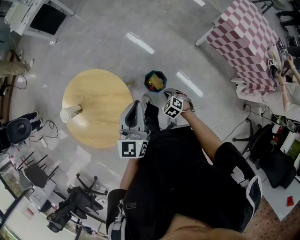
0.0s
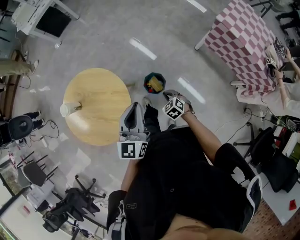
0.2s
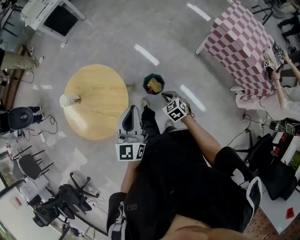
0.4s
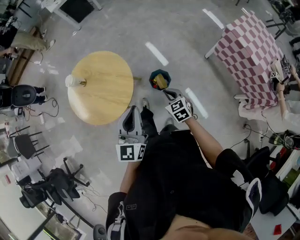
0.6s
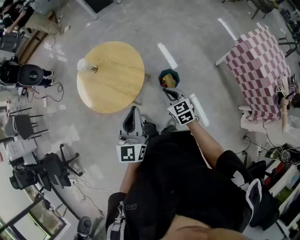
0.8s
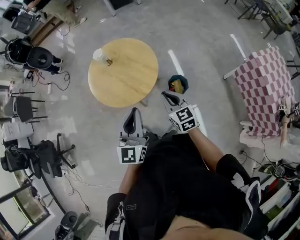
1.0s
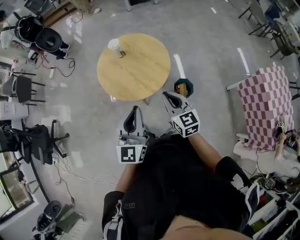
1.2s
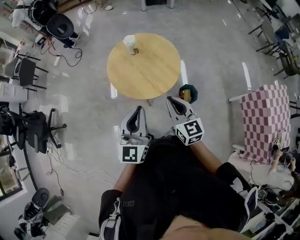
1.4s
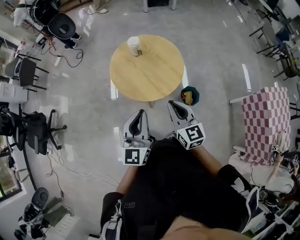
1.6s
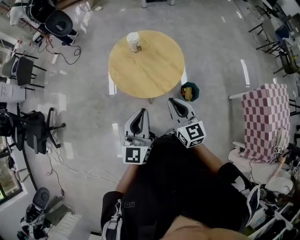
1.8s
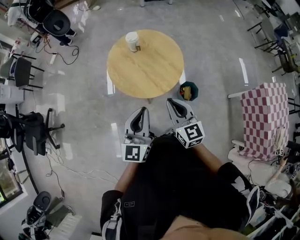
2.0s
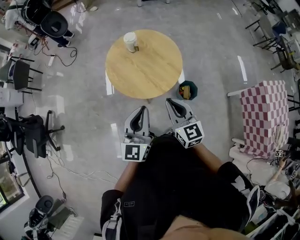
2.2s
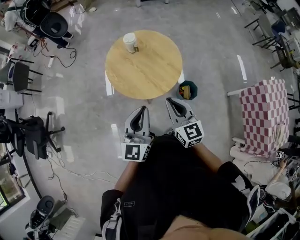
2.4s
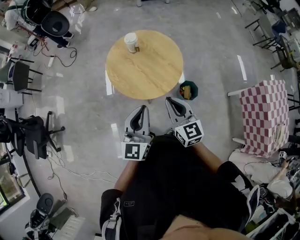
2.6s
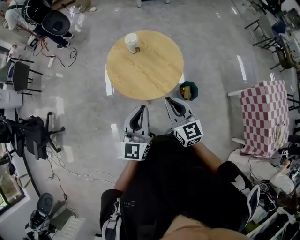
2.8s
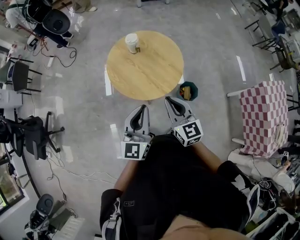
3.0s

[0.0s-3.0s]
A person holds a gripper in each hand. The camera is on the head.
0.0s to 1.6s: The left gripper ends up about 40 cm from where it was, and rotates roughly 40 degrees; the right gripper goes approximately 35 cm upward, and tips its fingers upward by about 50 degrees.
1.6s to 3.0s: The grippers move only a little.

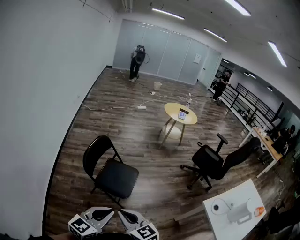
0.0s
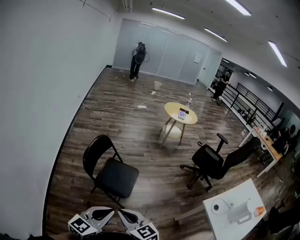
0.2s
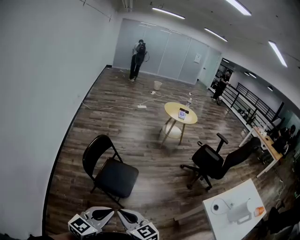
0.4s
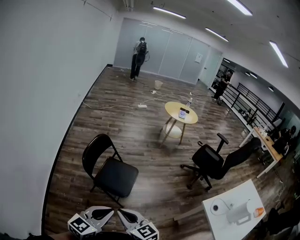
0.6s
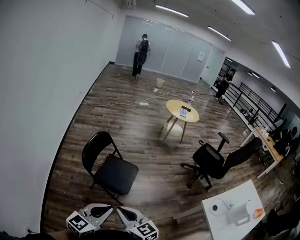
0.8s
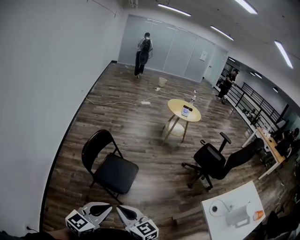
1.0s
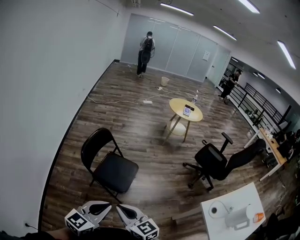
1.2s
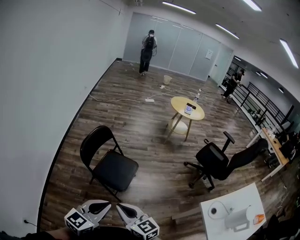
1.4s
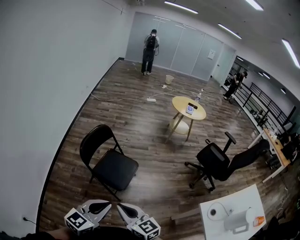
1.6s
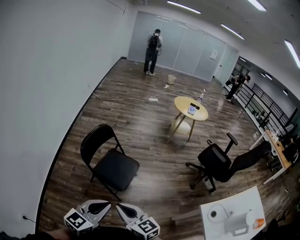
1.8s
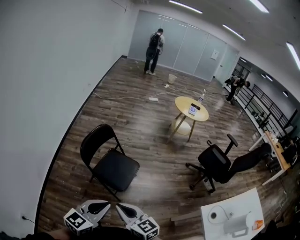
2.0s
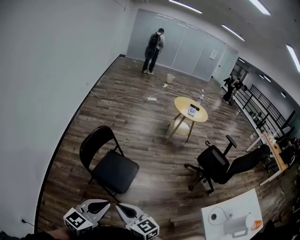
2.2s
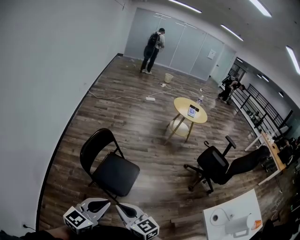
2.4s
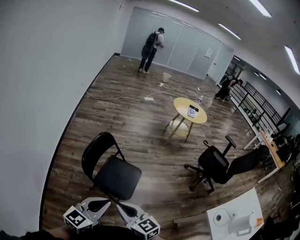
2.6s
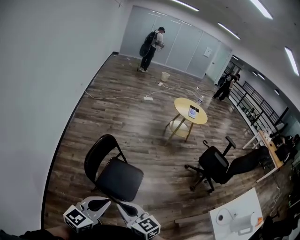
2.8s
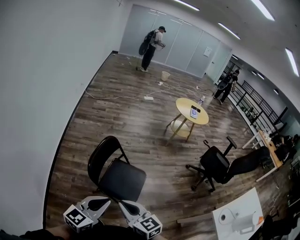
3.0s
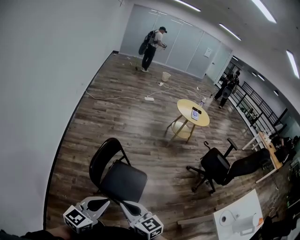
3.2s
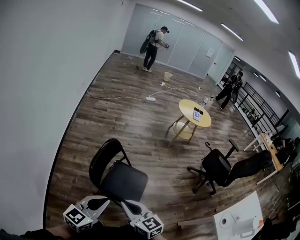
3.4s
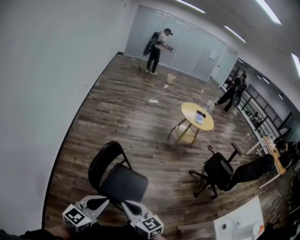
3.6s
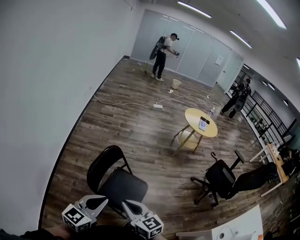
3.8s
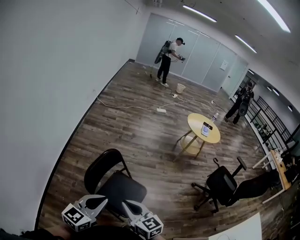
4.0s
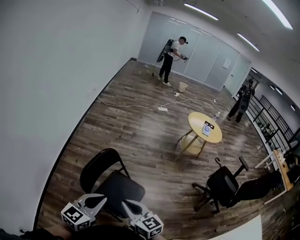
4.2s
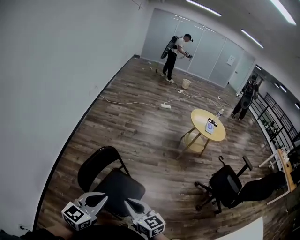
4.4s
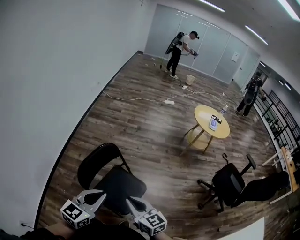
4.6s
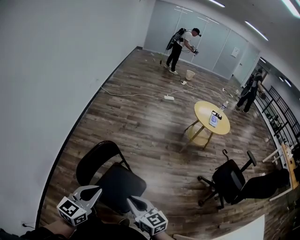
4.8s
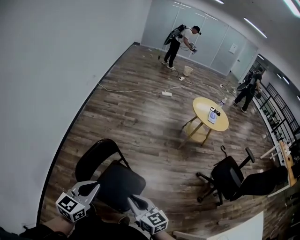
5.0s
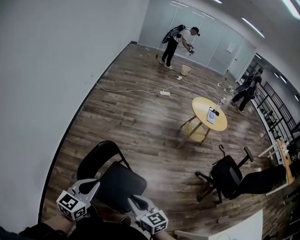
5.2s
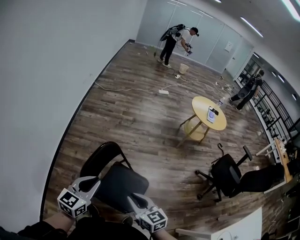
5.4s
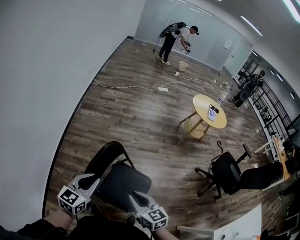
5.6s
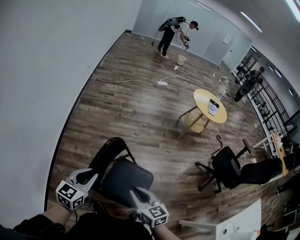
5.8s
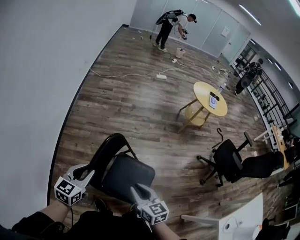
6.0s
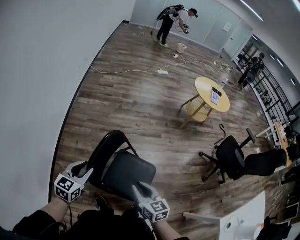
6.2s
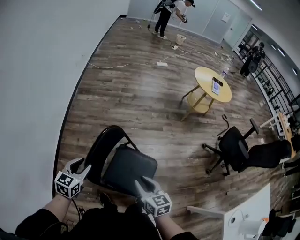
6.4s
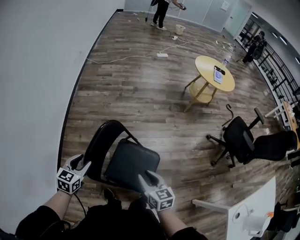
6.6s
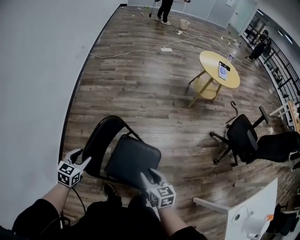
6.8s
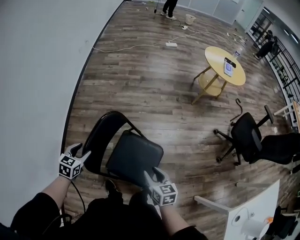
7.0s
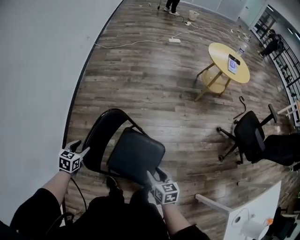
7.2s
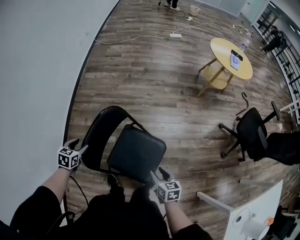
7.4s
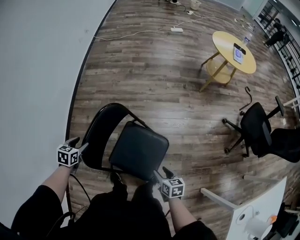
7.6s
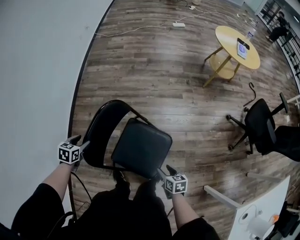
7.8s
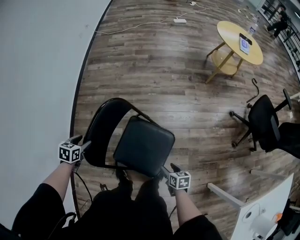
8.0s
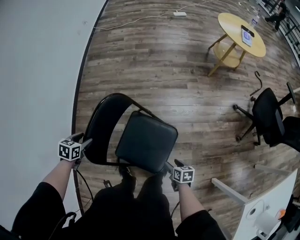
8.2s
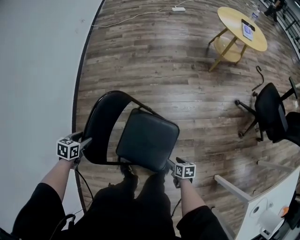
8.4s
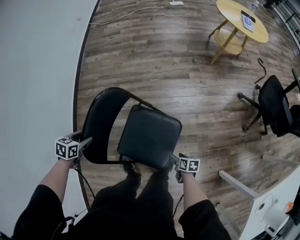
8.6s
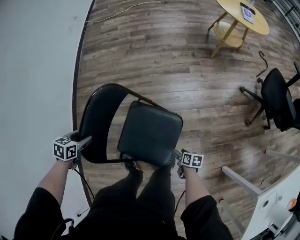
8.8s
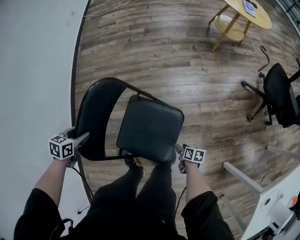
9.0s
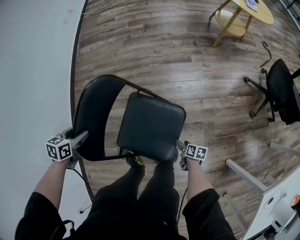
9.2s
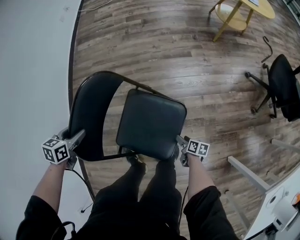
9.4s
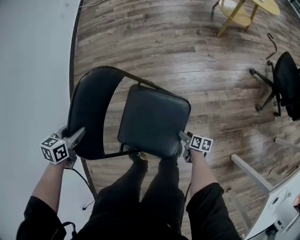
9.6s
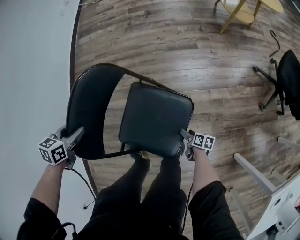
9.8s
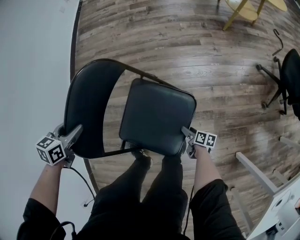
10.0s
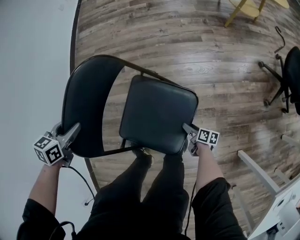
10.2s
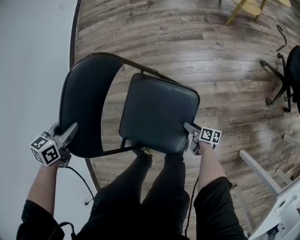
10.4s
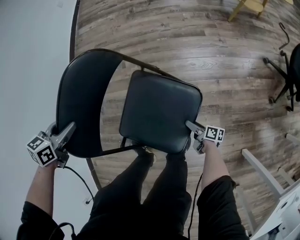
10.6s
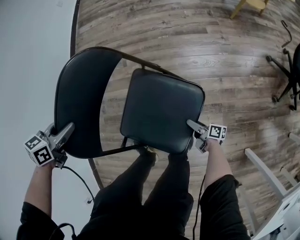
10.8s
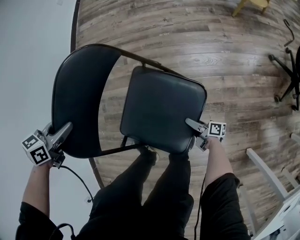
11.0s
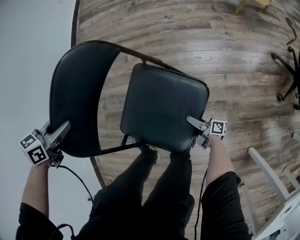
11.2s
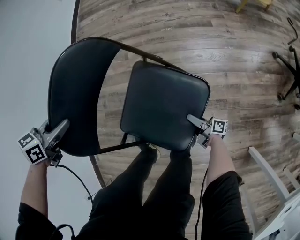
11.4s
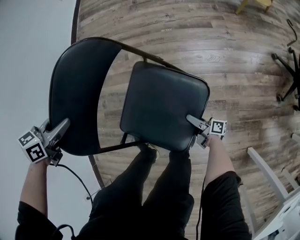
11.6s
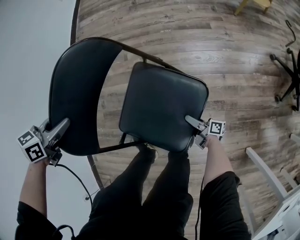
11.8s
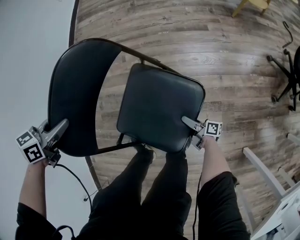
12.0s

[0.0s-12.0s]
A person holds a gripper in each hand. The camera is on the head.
0.0s to 1.6s: The grippers both shift to the right by about 5 cm.
1.6s to 3.0s: Both grippers move forward and to the left, roughly 20 cm.
3.0s to 4.4s: The grippers both shift forward and to the right by approximately 15 cm.
4.4s to 6.0s: The right gripper moves forward, to the left and downward, about 10 cm; the left gripper heads to the left, forward and downward, covering roughly 25 cm.
6.0s to 7.6s: The left gripper heads downward, covering about 20 cm, tilts its fingers roughly 30 degrees downward, and opens up, while the right gripper moves downward and to the right, about 30 cm, and turns by about 30 degrees.
7.6s to 9.0s: The right gripper shifts roughly 25 cm downward, and turns by some 30 degrees.
9.0s to 10.4s: The right gripper heads downward, covering approximately 10 cm.
10.4s to 12.0s: The right gripper shifts by approximately 5 cm, and turns by some 30 degrees.

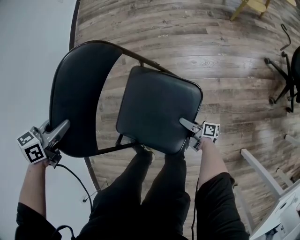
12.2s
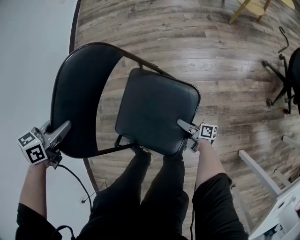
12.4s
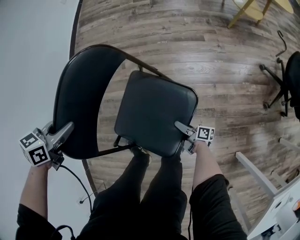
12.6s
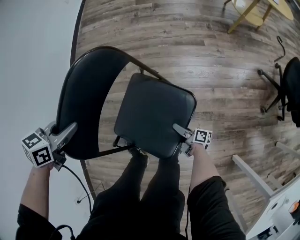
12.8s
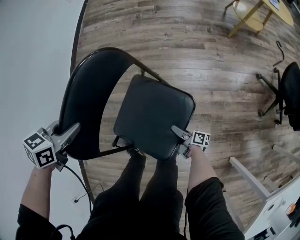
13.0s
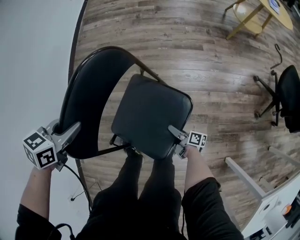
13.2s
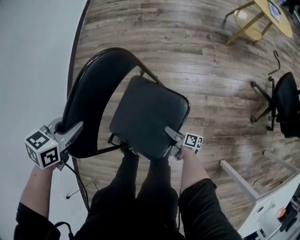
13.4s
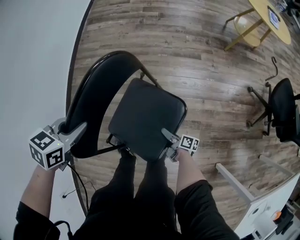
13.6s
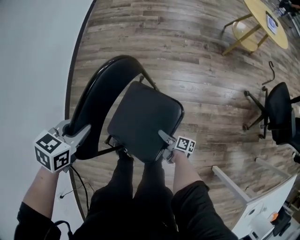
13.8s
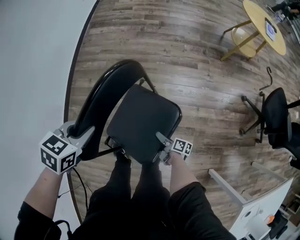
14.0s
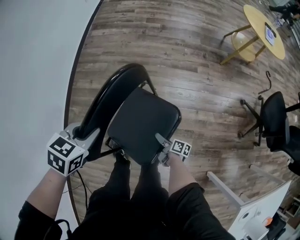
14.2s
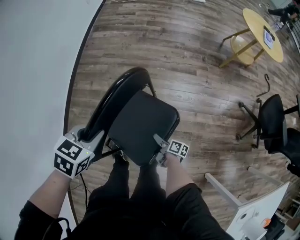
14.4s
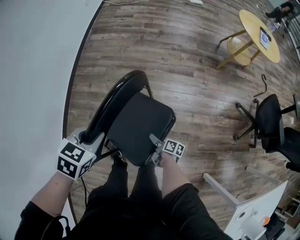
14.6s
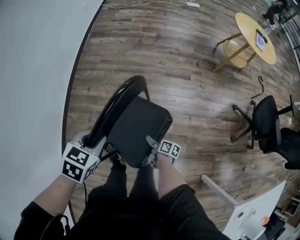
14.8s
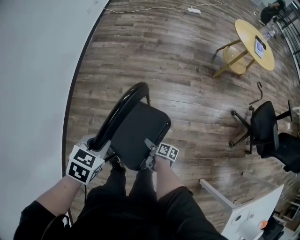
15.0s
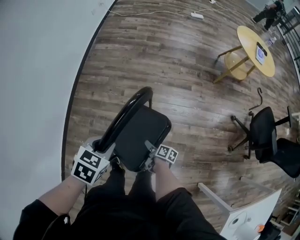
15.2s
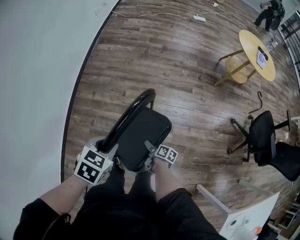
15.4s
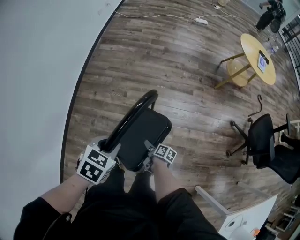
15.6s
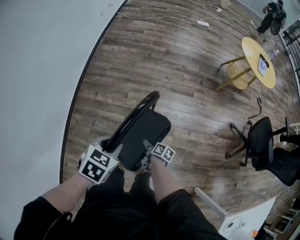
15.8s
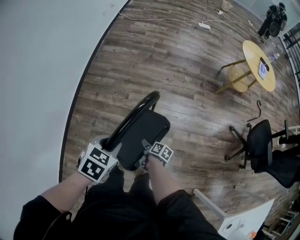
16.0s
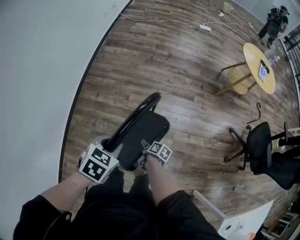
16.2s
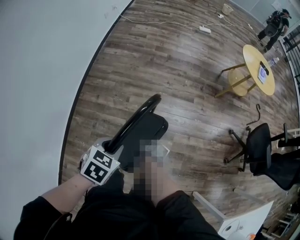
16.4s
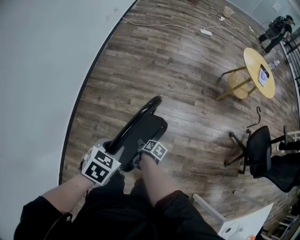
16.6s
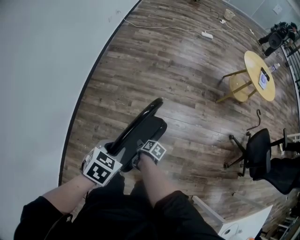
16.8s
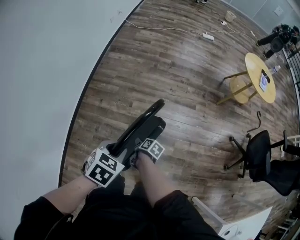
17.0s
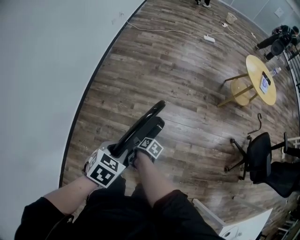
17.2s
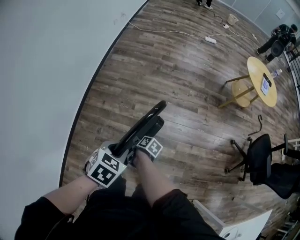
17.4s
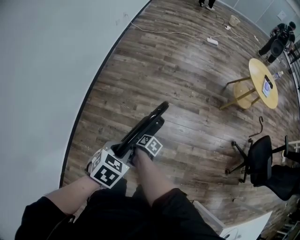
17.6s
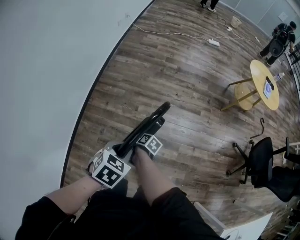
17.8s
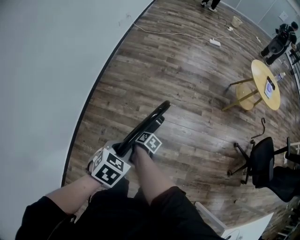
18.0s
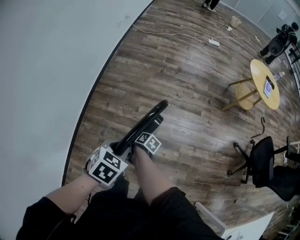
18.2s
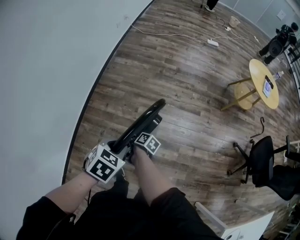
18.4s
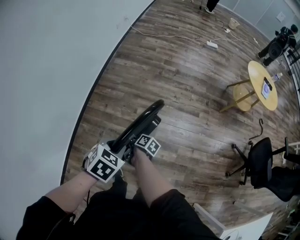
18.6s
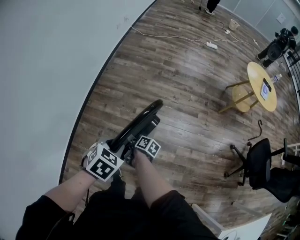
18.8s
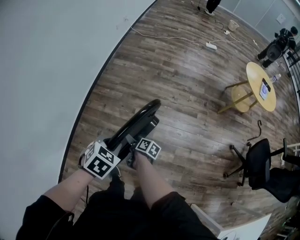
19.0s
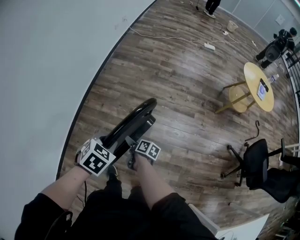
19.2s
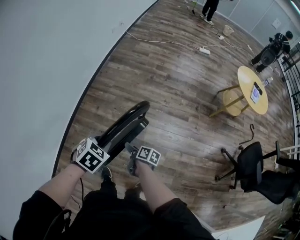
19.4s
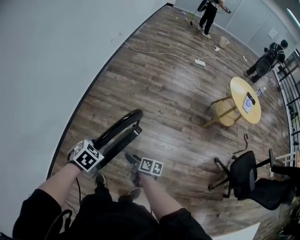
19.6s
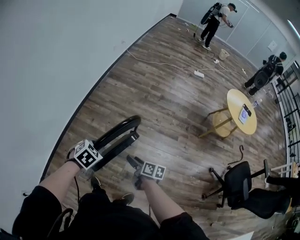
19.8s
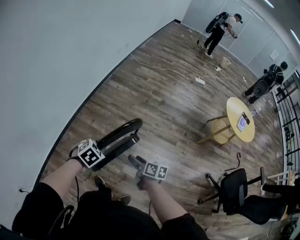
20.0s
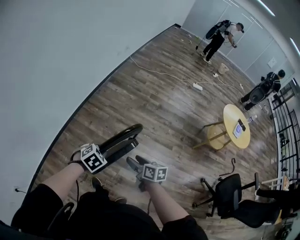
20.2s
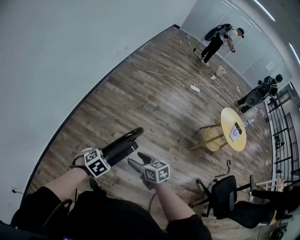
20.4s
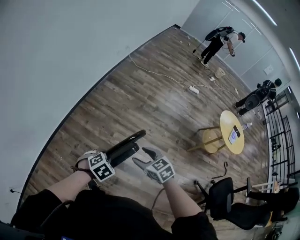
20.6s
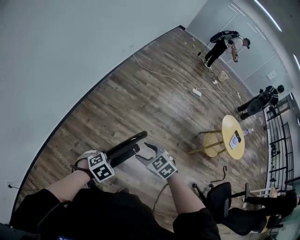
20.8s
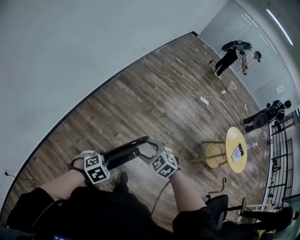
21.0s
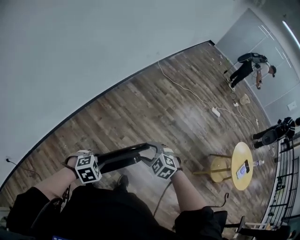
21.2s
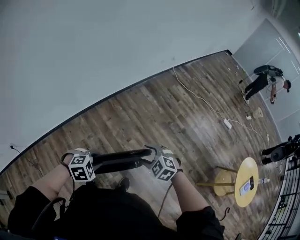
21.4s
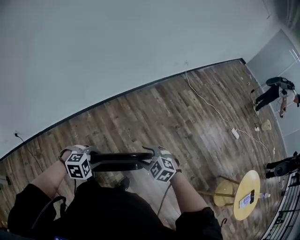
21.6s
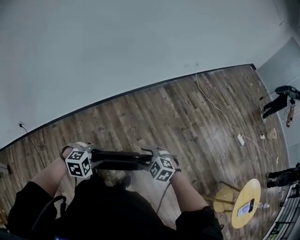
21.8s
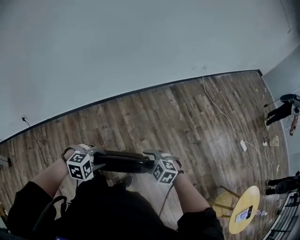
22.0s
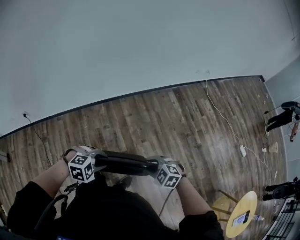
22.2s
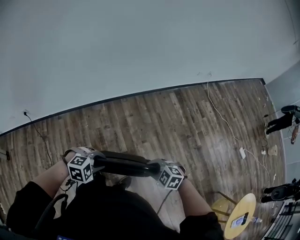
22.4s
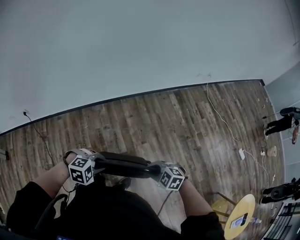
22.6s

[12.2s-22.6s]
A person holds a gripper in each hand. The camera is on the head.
12.2s to 13.6s: The two grippers go approximately 5 cm upward.
13.6s to 15.2s: The left gripper heads to the right, covering about 5 cm; the right gripper shifts roughly 10 cm upward.
15.2s to 16.6s: The right gripper travels to the left and forward by roughly 10 cm.
16.6s to 18.2s: The right gripper shifts approximately 15 cm to the left, forward and upward.
18.2s to 19.6s: The right gripper is displaced to the right, upward and backward by about 15 cm, and changes its angle by roughly 30 degrees.
19.6s to 21.2s: The right gripper moves forward and upward, about 20 cm, and rotates around the line of its fingers by about 120 degrees, counterclockwise from behind.
21.2s to 22.6s: The right gripper goes approximately 5 cm downward, turns by about 40 degrees, and closes. The left gripper moves roughly 5 cm.
